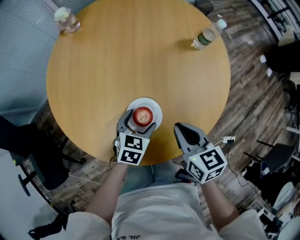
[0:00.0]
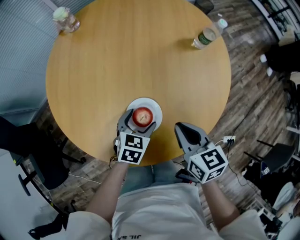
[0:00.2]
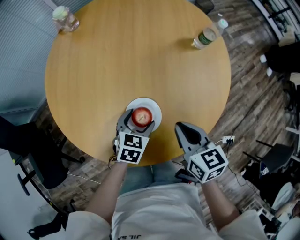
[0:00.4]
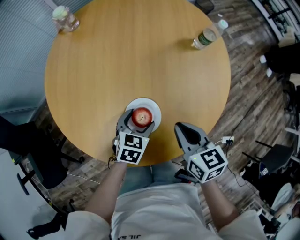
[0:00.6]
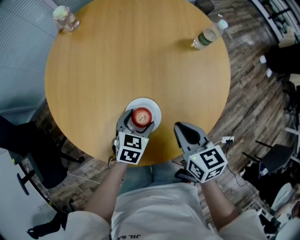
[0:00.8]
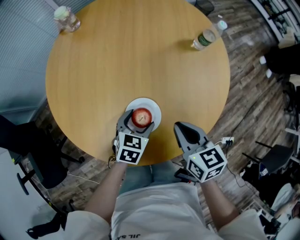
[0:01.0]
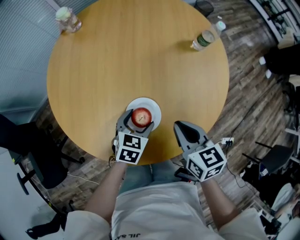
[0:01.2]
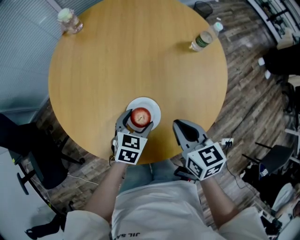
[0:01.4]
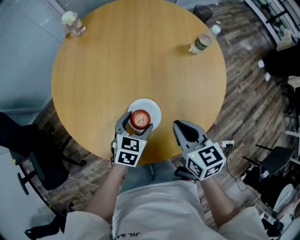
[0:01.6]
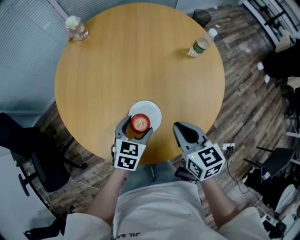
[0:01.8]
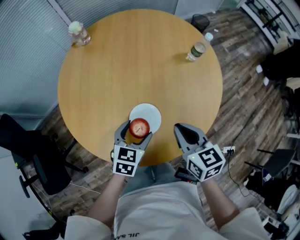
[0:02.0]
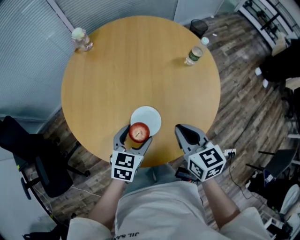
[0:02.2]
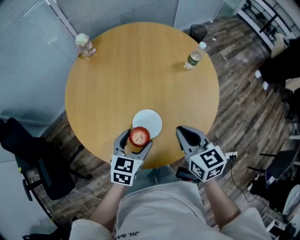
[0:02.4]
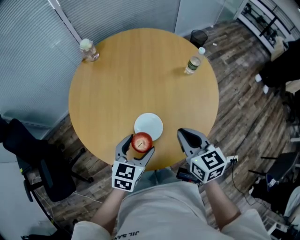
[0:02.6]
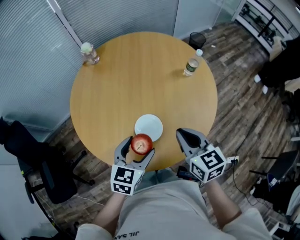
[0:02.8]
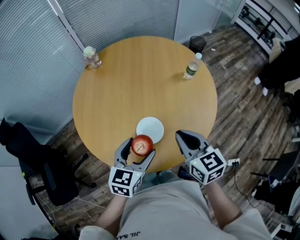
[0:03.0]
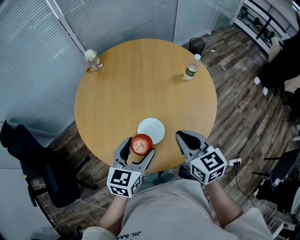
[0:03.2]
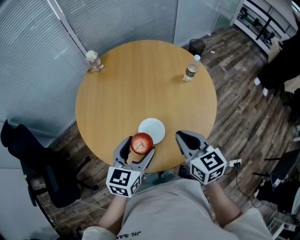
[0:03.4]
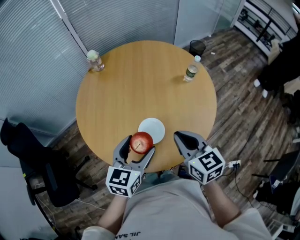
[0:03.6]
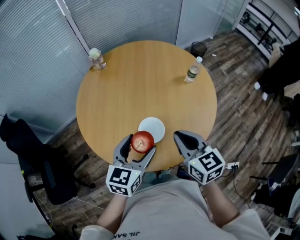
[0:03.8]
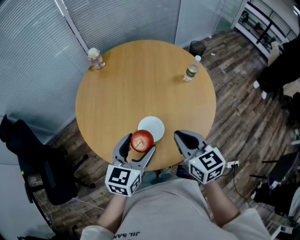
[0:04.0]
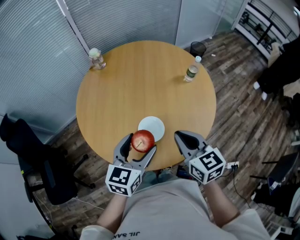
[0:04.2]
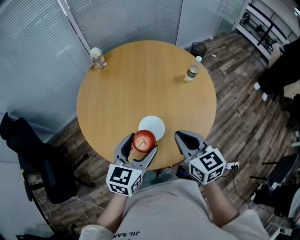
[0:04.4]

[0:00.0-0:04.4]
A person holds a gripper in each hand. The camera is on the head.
0:00.0 to 0:01.4: The two grippers keep their place.
0:01.4 to 0:03.0: The left gripper moves upward and backward, approximately 20 cm; the right gripper goes roughly 10 cm upward.
0:03.0 to 0:04.4: The left gripper heads upward, covering about 5 cm.

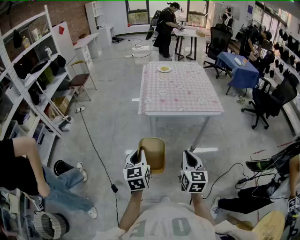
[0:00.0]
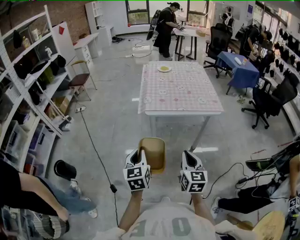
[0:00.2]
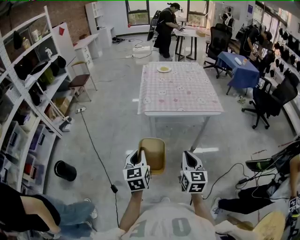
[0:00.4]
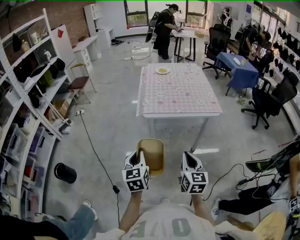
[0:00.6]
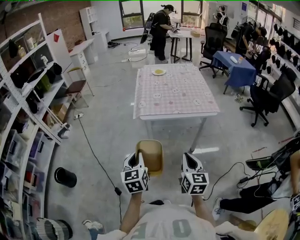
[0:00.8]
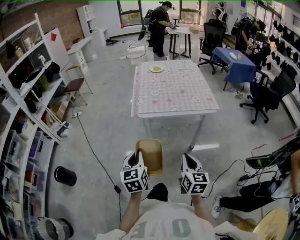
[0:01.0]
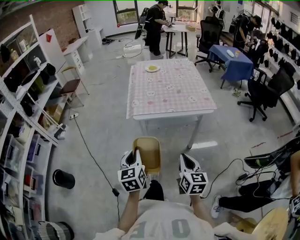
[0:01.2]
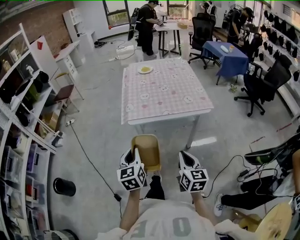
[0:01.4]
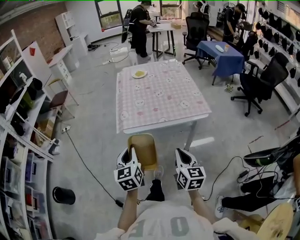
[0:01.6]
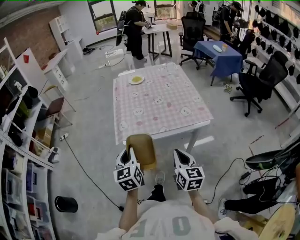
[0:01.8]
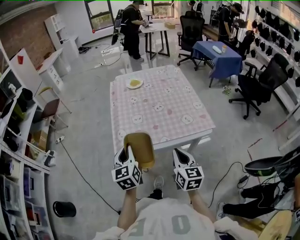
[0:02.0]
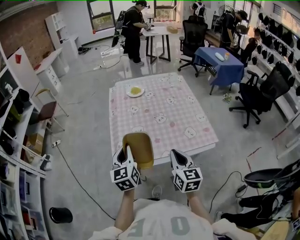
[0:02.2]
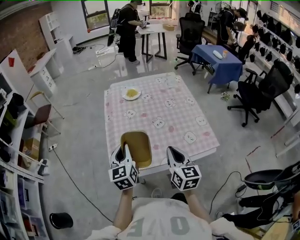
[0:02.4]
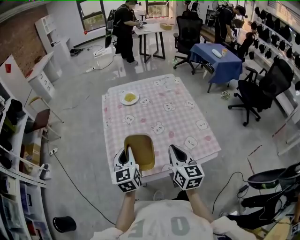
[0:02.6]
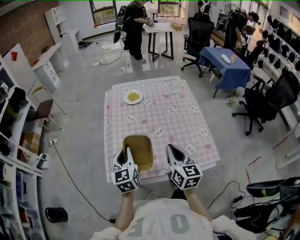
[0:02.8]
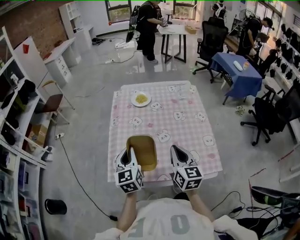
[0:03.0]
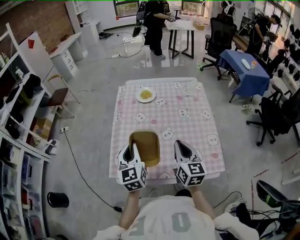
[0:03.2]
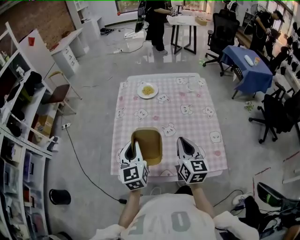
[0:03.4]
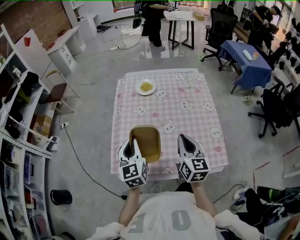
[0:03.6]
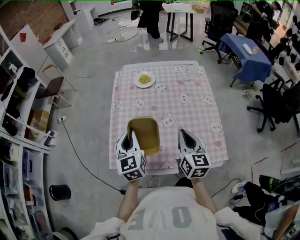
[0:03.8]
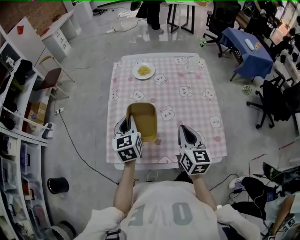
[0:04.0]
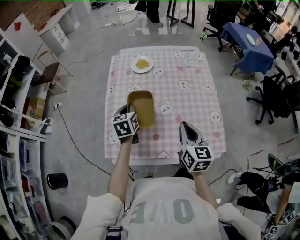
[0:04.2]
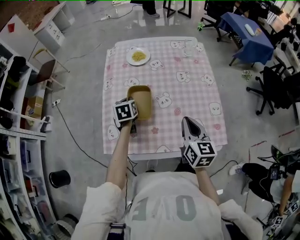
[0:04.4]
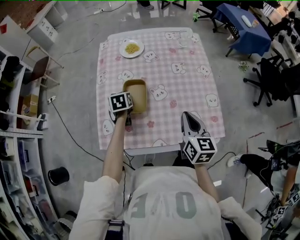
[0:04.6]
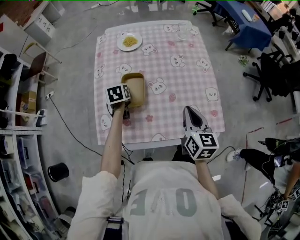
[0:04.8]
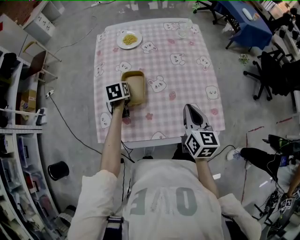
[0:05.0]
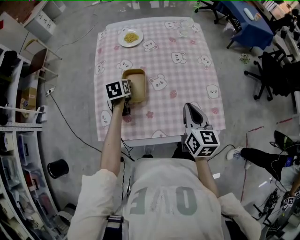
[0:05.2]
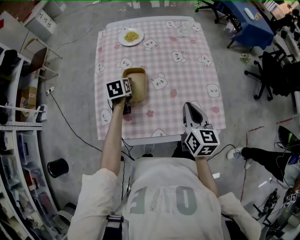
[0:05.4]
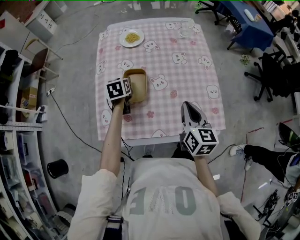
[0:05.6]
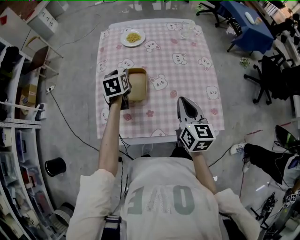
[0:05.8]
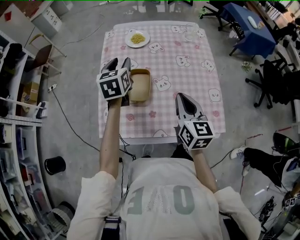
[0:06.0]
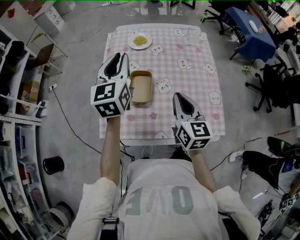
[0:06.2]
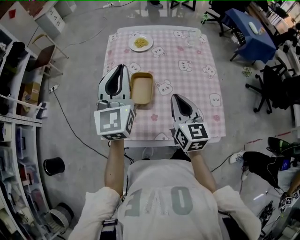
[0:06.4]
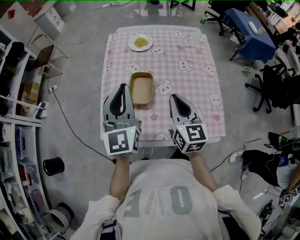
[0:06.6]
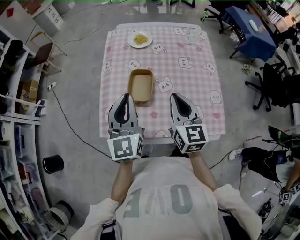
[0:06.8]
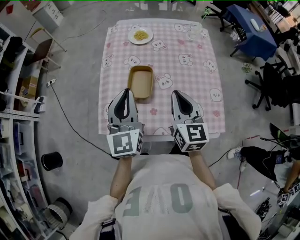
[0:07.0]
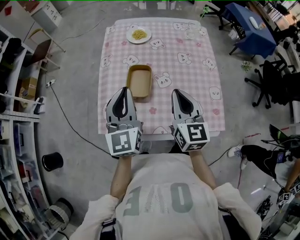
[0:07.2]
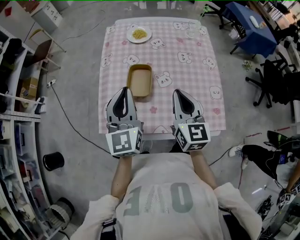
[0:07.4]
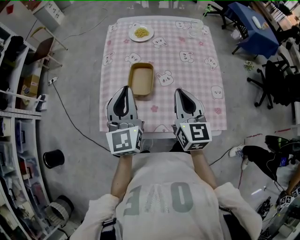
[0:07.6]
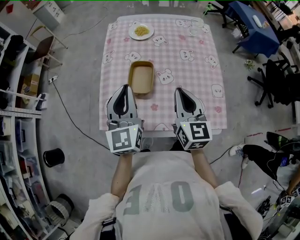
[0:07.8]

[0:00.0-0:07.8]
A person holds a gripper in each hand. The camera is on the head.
0:00.0 to 0:01.6: Both grippers move forward and to the right, approximately 15 cm.
0:01.6 to 0:03.2: Both grippers move forward, some 40 cm.
0:03.2 to 0:04.6: The right gripper moves downward, some 5 cm, while the left gripper shifts approximately 25 cm downward and forward, and tilts its fingers approximately 40 degrees downward.
0:04.6 to 0:06.2: The left gripper heads upward, covering some 30 cm, and tips its fingers upward by some 40 degrees. The right gripper travels to the left by roughly 5 cm.
0:06.2 to 0:07.8: The left gripper heads backward, covering roughly 10 cm.

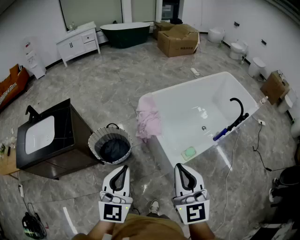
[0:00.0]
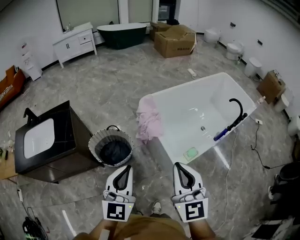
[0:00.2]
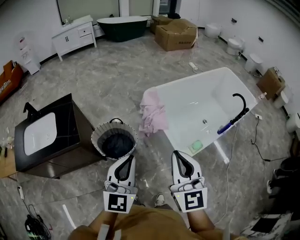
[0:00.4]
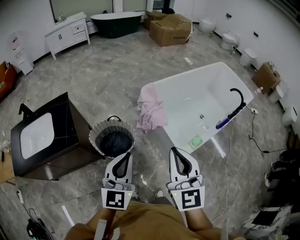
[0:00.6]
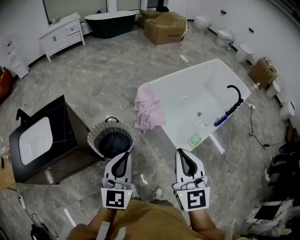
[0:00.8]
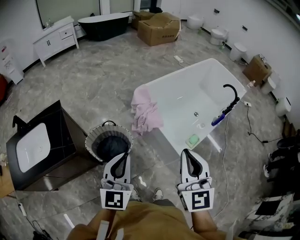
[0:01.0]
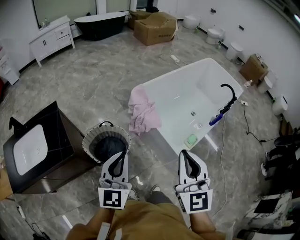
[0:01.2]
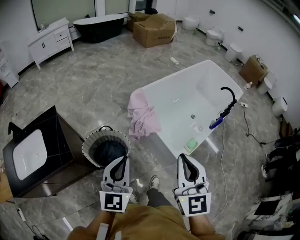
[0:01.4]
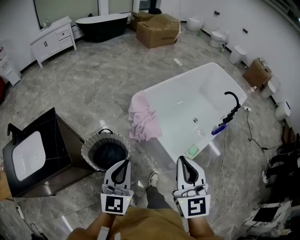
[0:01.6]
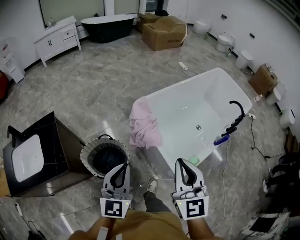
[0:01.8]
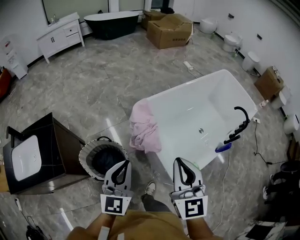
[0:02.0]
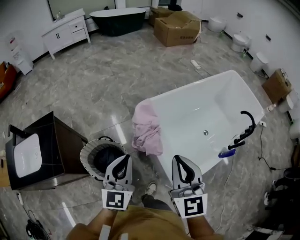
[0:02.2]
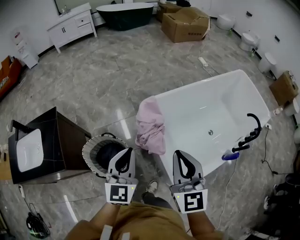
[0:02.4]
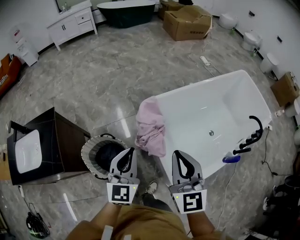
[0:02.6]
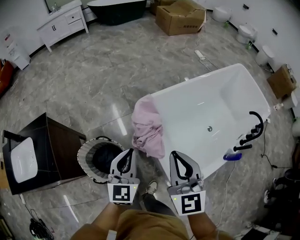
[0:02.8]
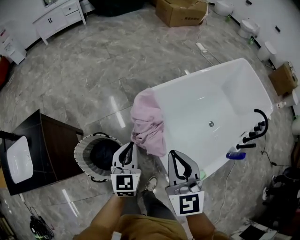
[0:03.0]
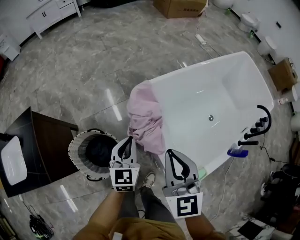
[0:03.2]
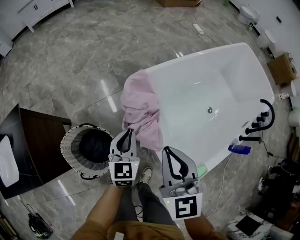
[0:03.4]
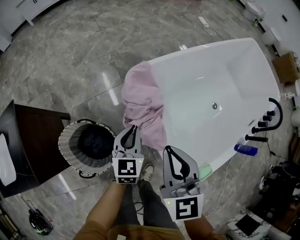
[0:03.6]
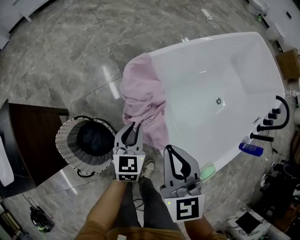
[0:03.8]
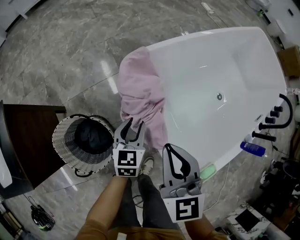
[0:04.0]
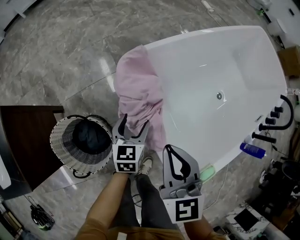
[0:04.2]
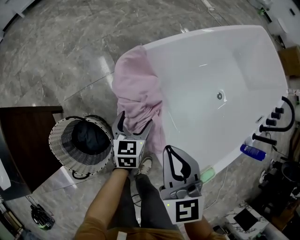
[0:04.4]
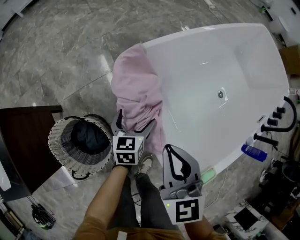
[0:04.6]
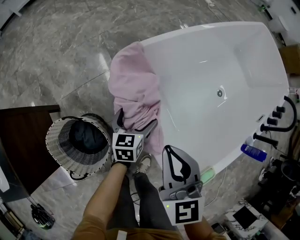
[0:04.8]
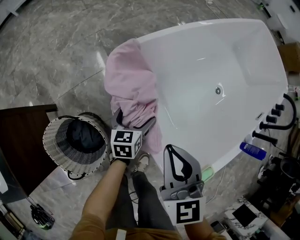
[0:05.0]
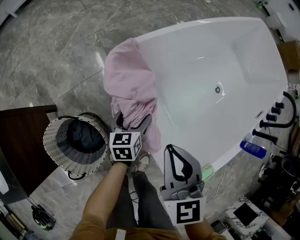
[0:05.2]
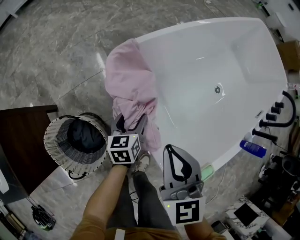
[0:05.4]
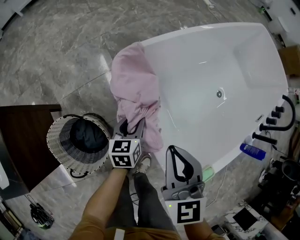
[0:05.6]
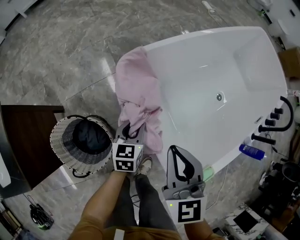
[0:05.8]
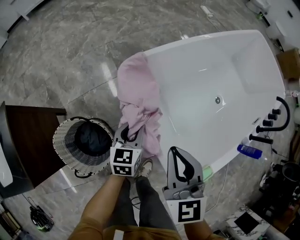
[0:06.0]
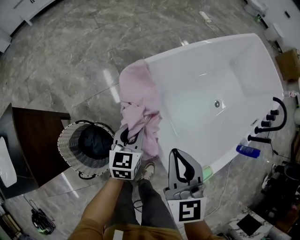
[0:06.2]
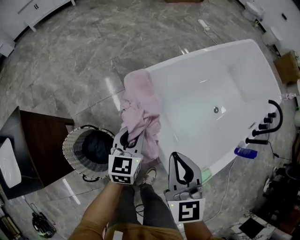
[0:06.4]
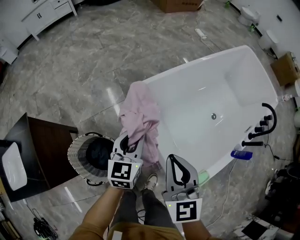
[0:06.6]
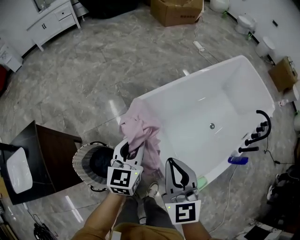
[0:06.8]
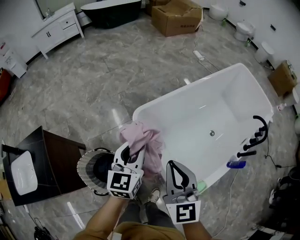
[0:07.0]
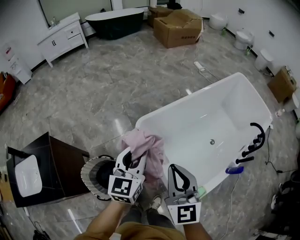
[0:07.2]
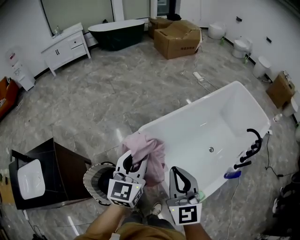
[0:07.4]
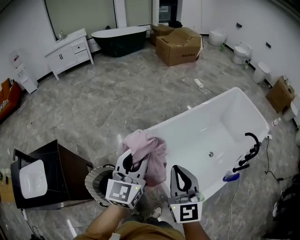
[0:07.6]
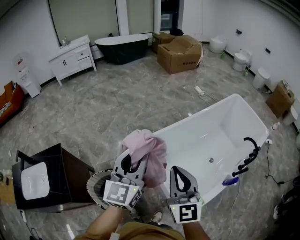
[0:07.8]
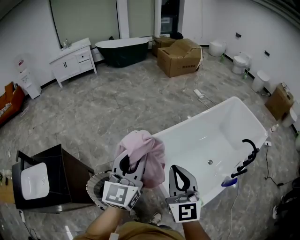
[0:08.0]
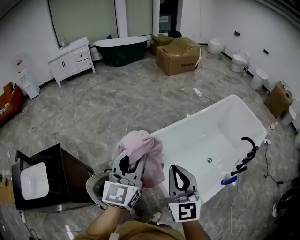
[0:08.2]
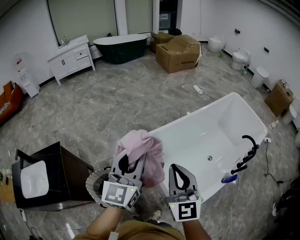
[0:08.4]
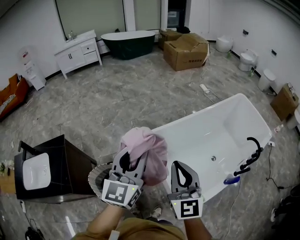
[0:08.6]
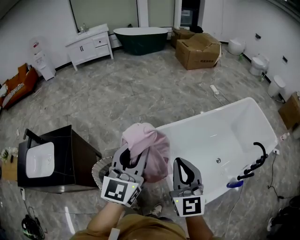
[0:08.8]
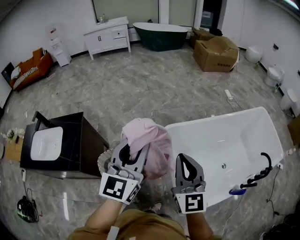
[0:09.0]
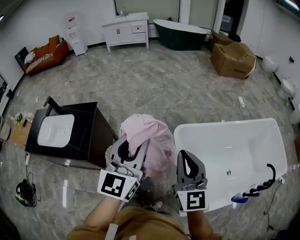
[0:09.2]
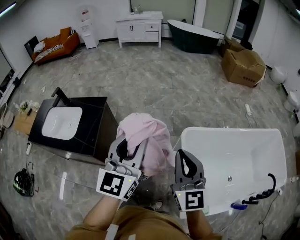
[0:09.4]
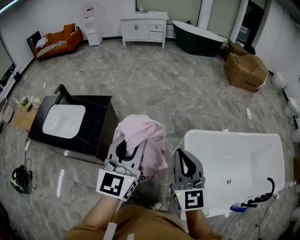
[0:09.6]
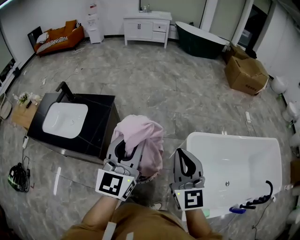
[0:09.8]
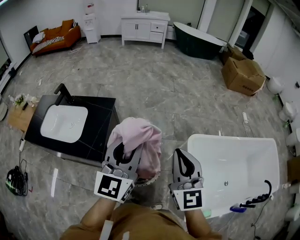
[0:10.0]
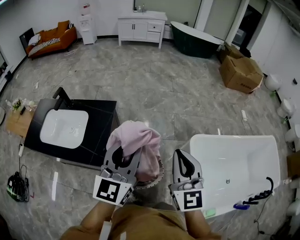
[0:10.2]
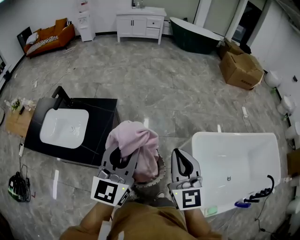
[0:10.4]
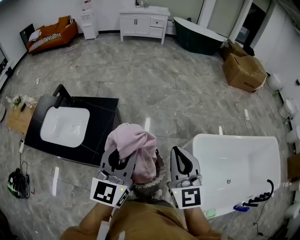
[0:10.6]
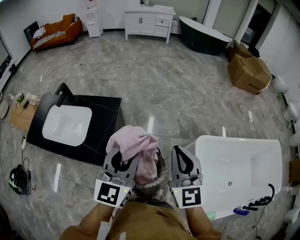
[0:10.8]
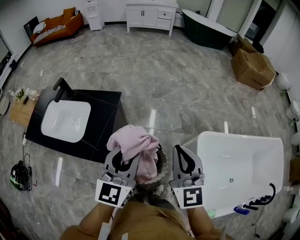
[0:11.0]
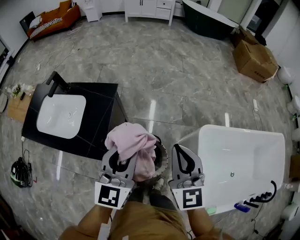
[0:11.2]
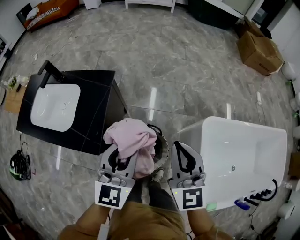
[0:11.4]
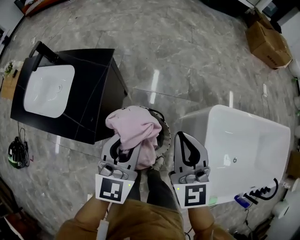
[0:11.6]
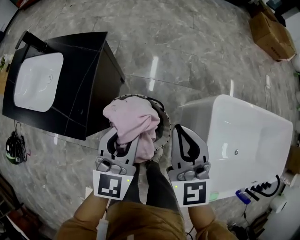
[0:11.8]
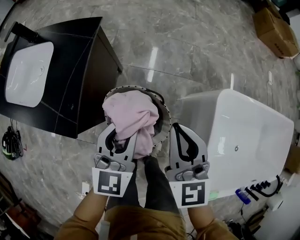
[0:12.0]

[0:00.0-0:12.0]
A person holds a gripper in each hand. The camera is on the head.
0:00.0 to 0:01.6: The left gripper is displaced forward and to the left by some 15 cm; the right gripper is displaced to the left and forward by about 15 cm.
0:01.6 to 0:03.0: The grippers both shift forward and downward by about 35 cm.
0:03.0 to 0:04.4: Both grippers move downward, approximately 25 cm. The left gripper rotates approximately 20 degrees, and opens.
0:04.4 to 0:06.0: The left gripper shifts approximately 5 cm upward, and closes.
0:06.0 to 0:07.6: The right gripper heads upward, covering roughly 25 cm; the left gripper goes some 50 cm upward, and points its fingers some 30 degrees further upward.
0:07.6 to 0:09.0: The left gripper moves to the left, backward and upward, approximately 15 cm, while the right gripper shifts approximately 5 cm to the left.
0:09.0 to 0:10.4: Both grippers travel together to the left, roughly 30 cm.
0:10.4 to 0:12.0: Both grippers move downward, some 30 cm. The left gripper rotates roughly 20 degrees.
